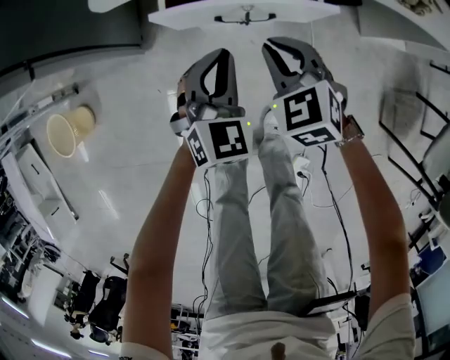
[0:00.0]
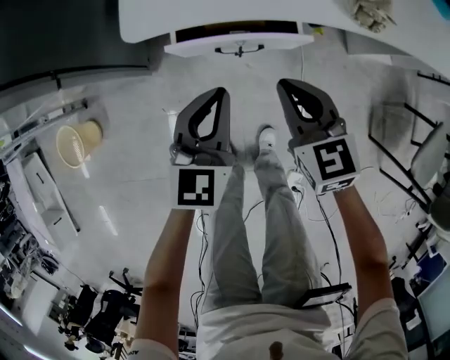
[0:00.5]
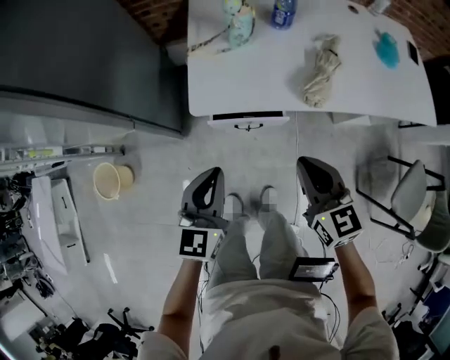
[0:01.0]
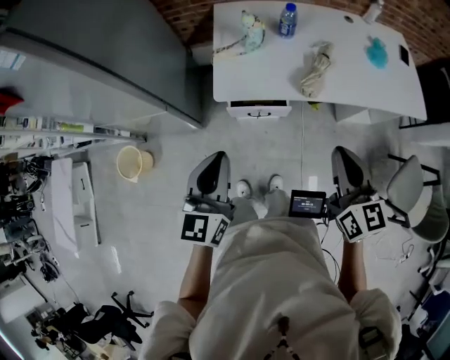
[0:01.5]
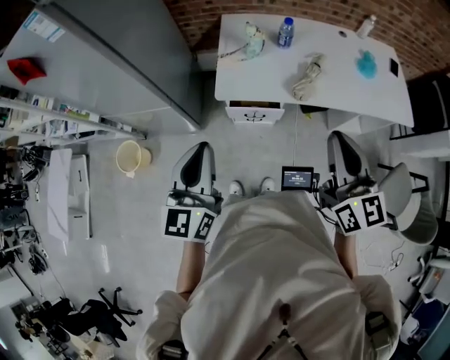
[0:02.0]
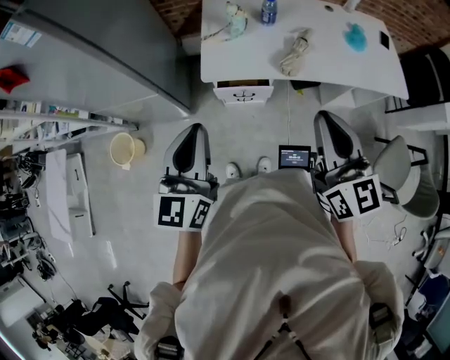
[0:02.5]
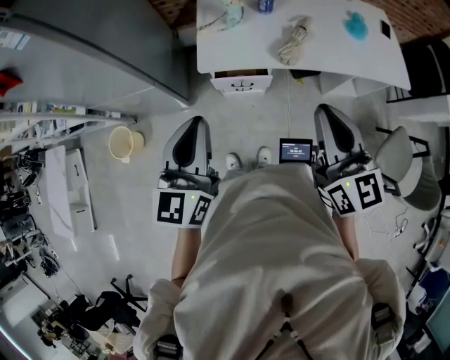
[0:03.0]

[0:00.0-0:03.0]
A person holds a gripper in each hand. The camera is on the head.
0:00.0 to 0:01.5: The two grippers go some 50 cm upward. The right gripper tips its fingers upward by about 30 degrees; the left gripper rotates some 40 degrees.
0:01.5 to 0:03.0: Both grippers travel together upward and backward, some 10 cm.

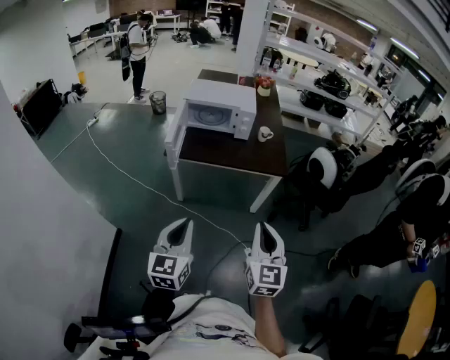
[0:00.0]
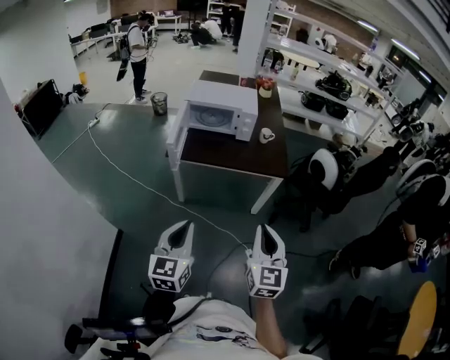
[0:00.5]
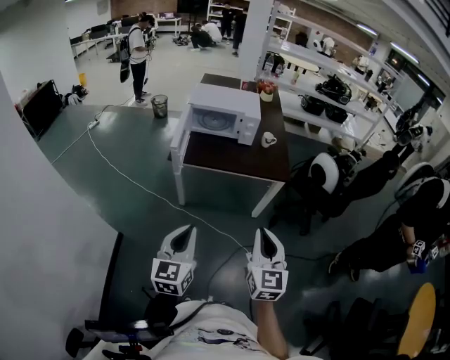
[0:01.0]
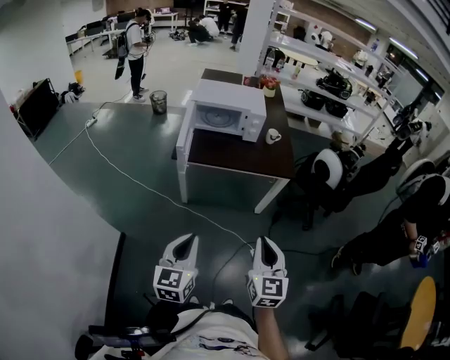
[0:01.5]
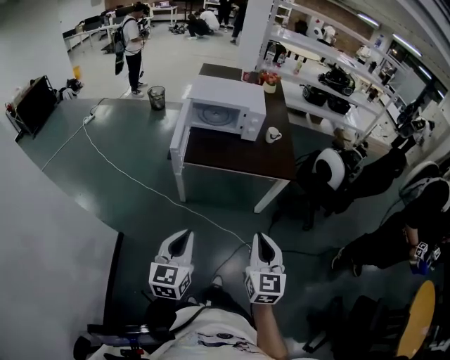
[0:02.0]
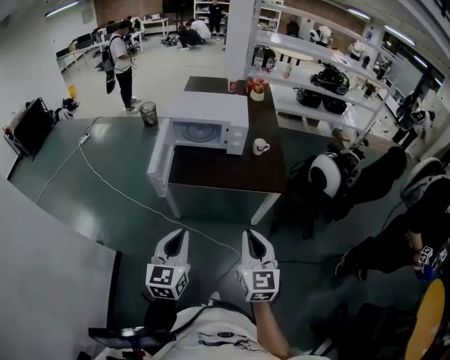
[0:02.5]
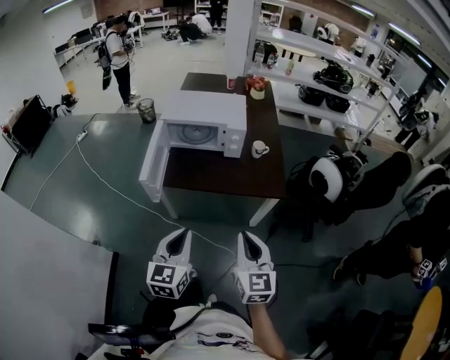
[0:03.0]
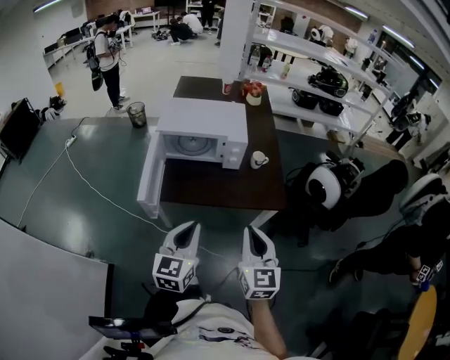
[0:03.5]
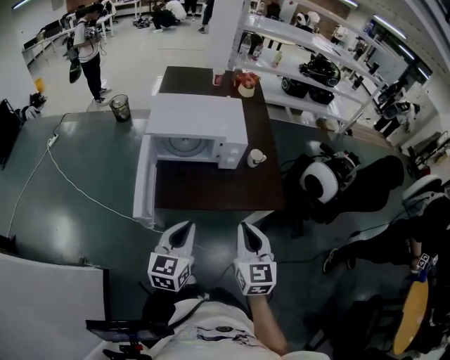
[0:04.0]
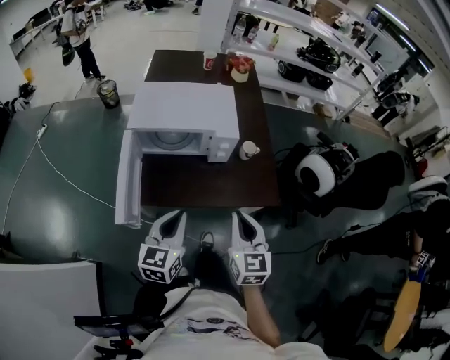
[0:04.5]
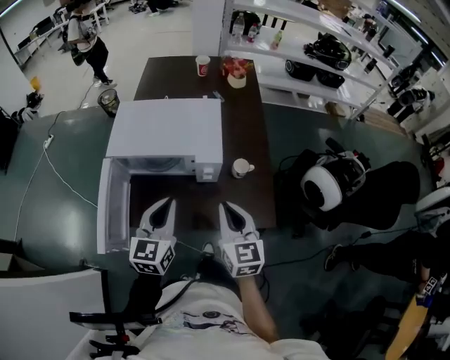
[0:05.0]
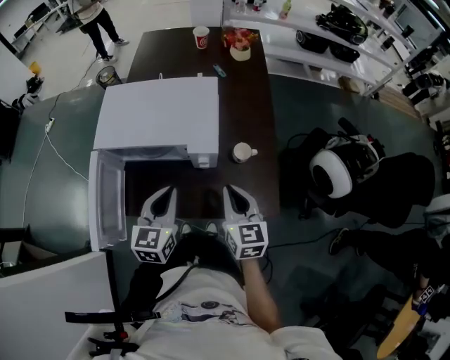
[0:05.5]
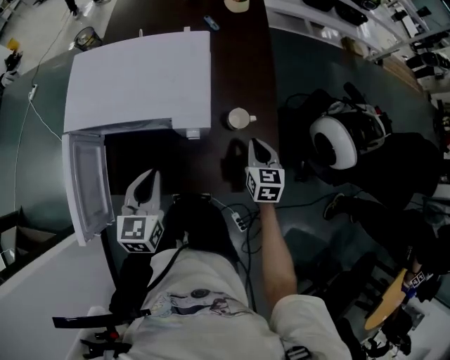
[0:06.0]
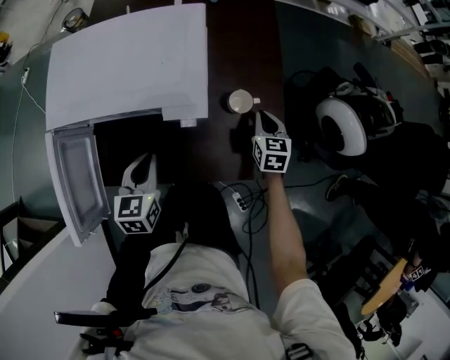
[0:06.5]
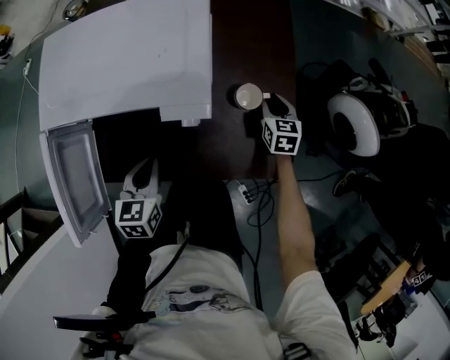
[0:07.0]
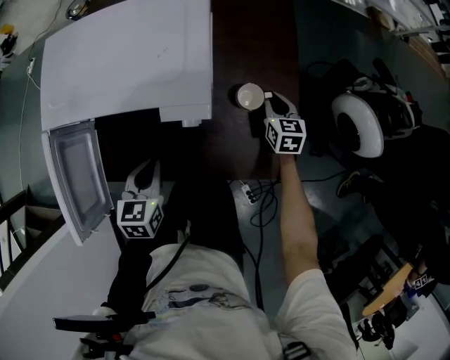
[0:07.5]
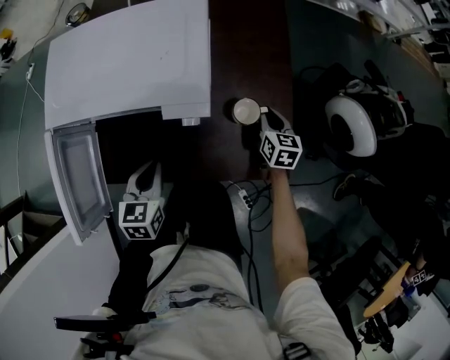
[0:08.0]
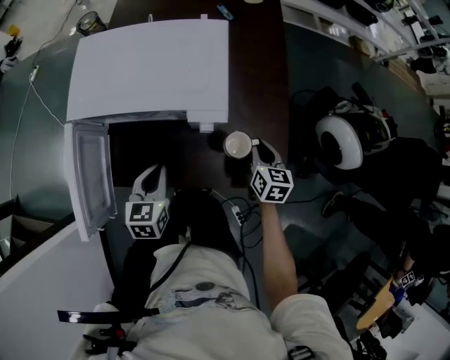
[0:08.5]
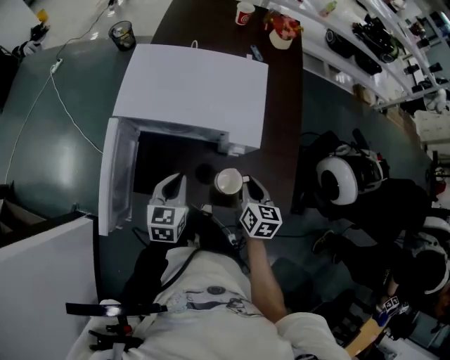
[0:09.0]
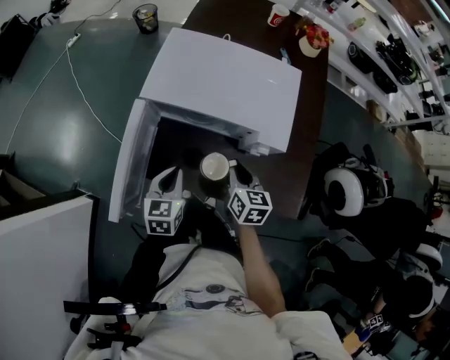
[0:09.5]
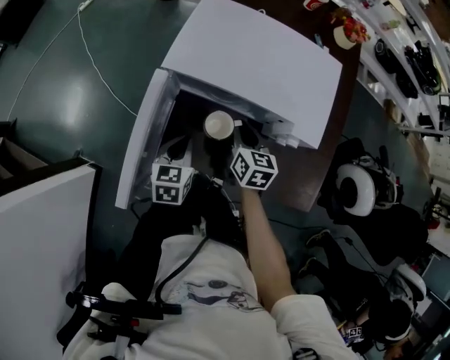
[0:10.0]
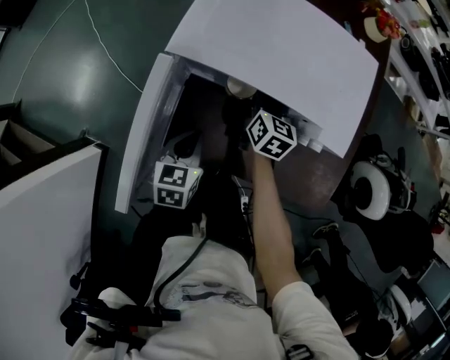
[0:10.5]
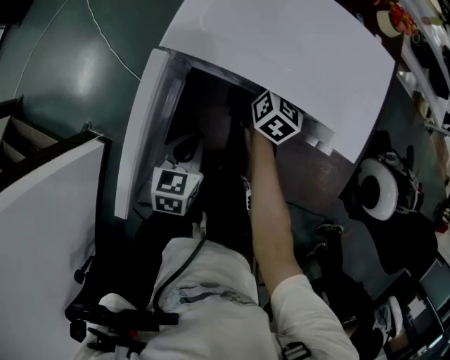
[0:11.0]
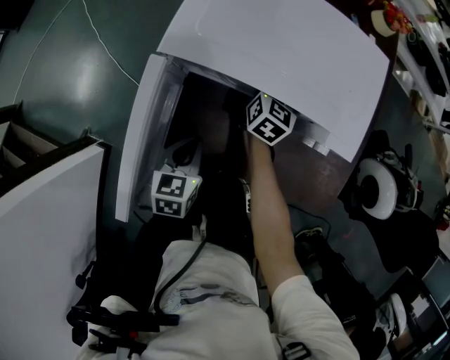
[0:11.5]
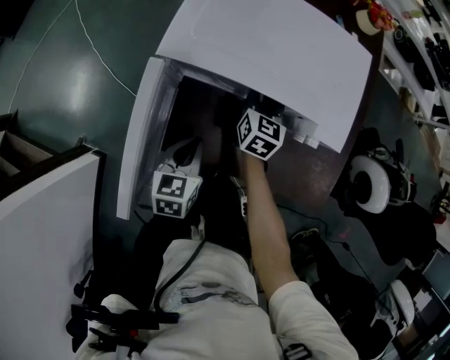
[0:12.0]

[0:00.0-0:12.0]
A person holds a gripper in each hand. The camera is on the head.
0:00.0 to 0:02.0: The left gripper changes place by approximately 5 cm; the right gripper shifts by roughly 5 cm.
0:02.0 to 0:04.0: The grippers both shift forward by some 25 cm.
0:04.0 to 0:06.0: The right gripper shifts some 40 cm forward, downward and to the right, and turns by about 20 degrees; the left gripper travels forward by some 20 cm.
0:06.0 to 0:08.0: Both grippers travel together downward, some 10 cm.
0:08.0 to 0:10.0: The right gripper shifts roughly 35 cm to the left, while the left gripper goes roughly 15 cm to the left.
0:10.0 to 0:12.0: The right gripper goes roughly 10 cm forward.

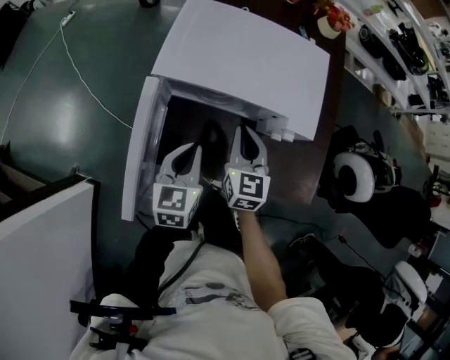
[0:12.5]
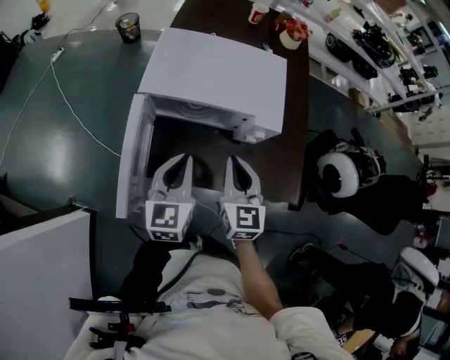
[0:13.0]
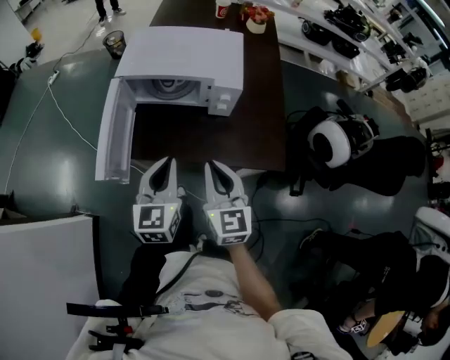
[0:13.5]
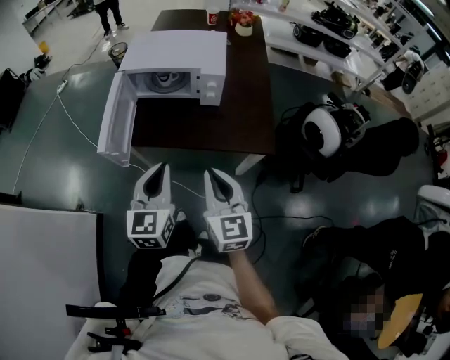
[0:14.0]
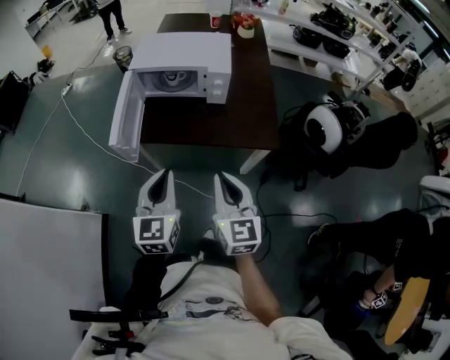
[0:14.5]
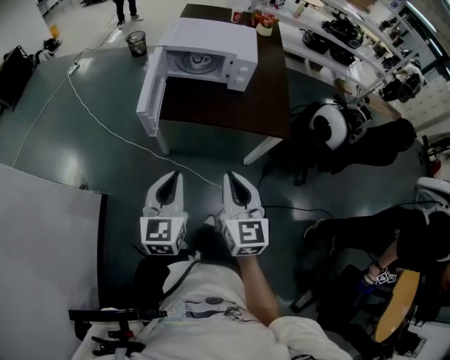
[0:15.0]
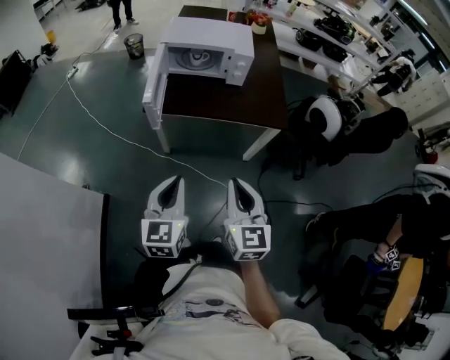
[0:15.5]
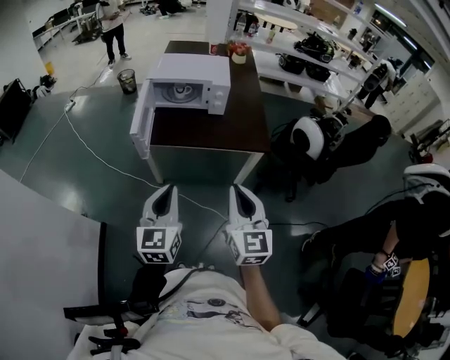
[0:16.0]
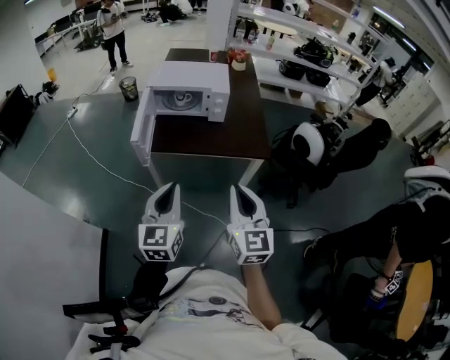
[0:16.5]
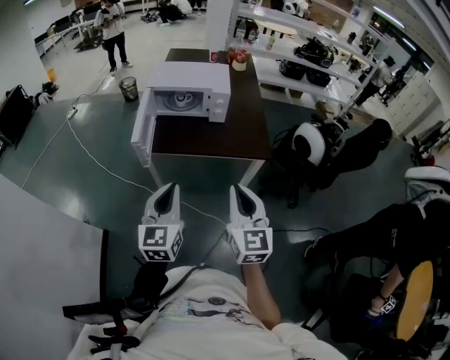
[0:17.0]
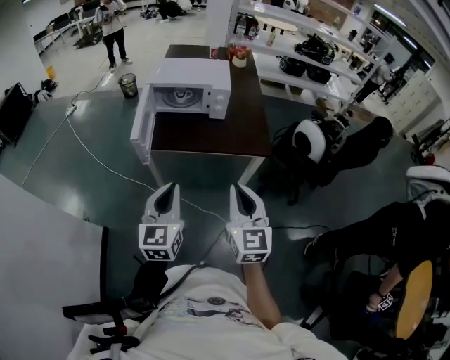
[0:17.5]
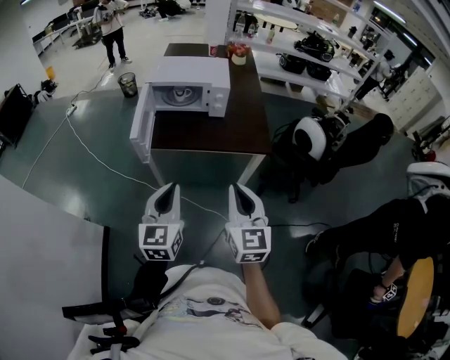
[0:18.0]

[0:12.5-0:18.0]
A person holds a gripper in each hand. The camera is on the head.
0:12.5 to 0:14.5: The left gripper moves backward and upward, some 30 cm, while the right gripper heads backward, covering some 35 cm.
0:14.5 to 0:16.0: The left gripper goes some 15 cm backward. Meanwhile the right gripper heads backward and upward, covering some 15 cm.
0:16.0 to 0:18.0: There are only small adjustments of the grippers.

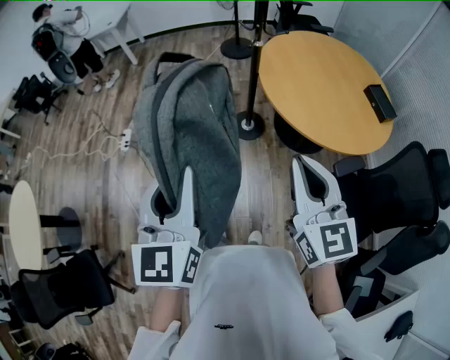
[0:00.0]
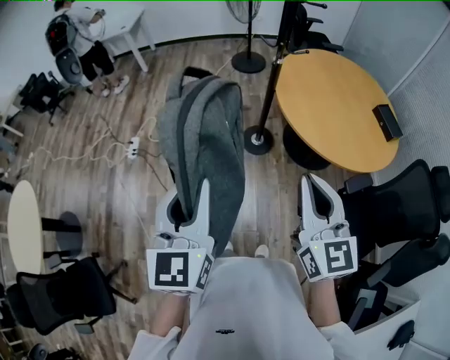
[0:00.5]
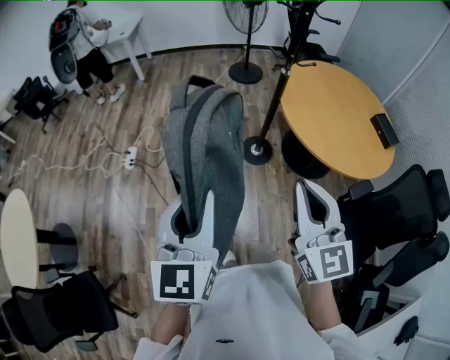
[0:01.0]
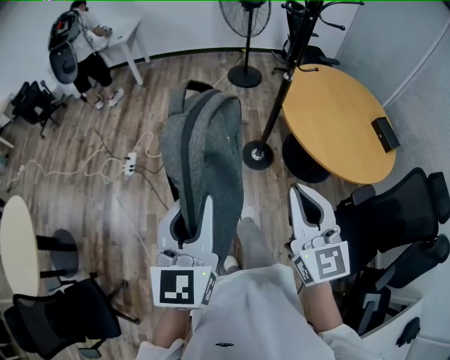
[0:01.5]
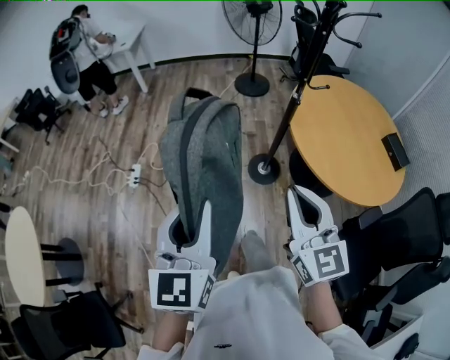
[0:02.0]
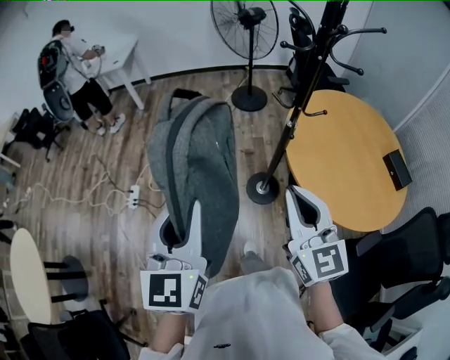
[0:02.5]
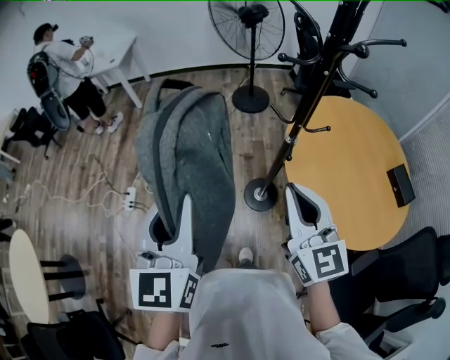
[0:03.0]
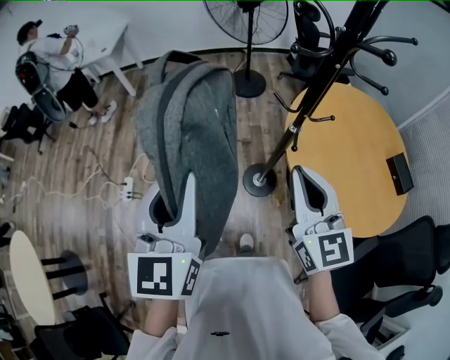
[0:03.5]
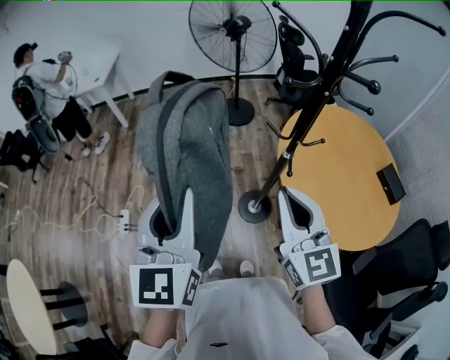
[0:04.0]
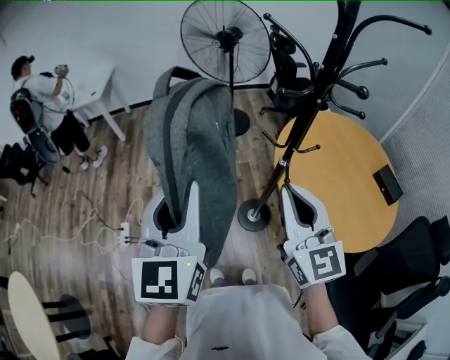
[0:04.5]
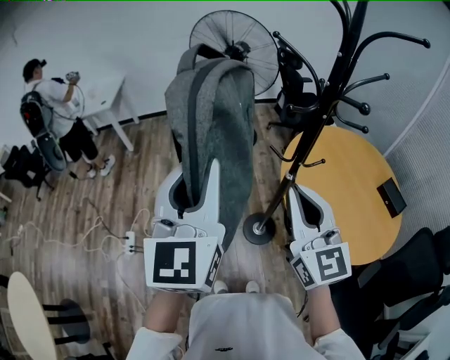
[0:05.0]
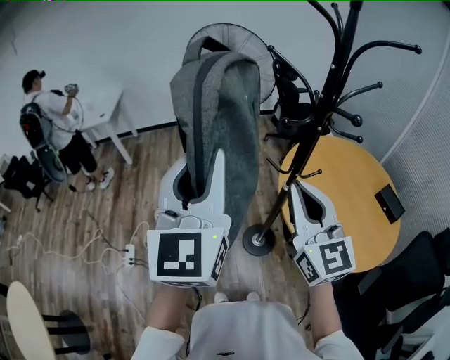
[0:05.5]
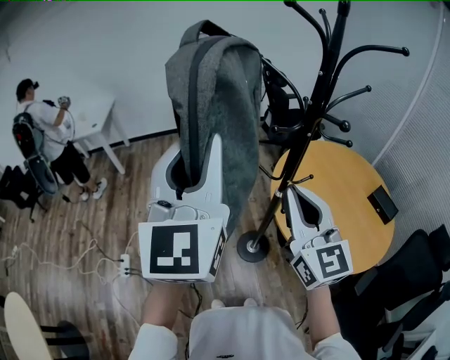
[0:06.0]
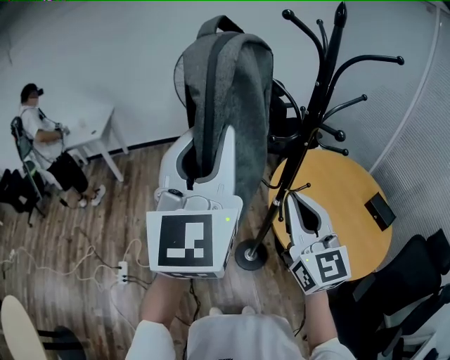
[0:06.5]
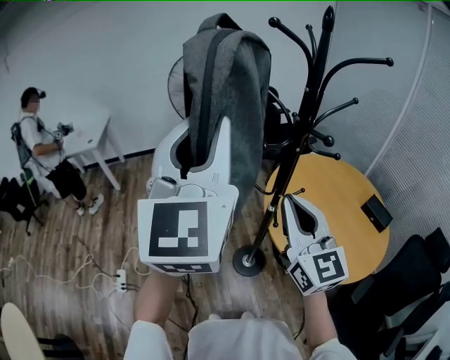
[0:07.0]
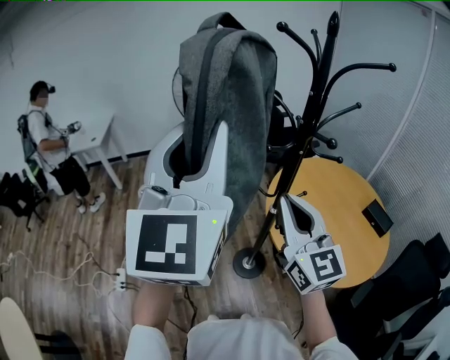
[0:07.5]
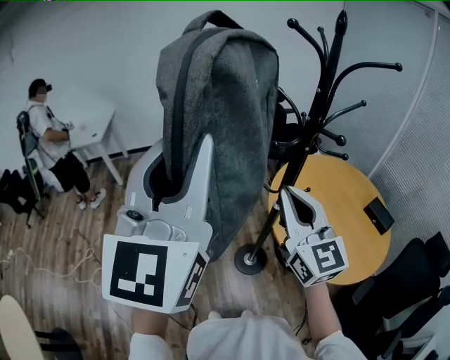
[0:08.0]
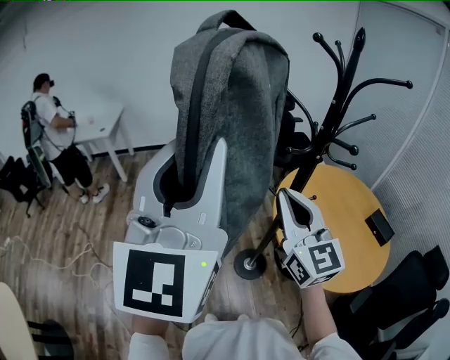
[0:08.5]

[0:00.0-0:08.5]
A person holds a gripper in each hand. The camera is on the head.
0:00.0 to 0:02.0: Both grippers move to the left and forward, approximately 20 cm.
0:02.0 to 0:04.0: Both grippers travel together forward, roughly 25 cm.
0:04.0 to 0:06.5: The right gripper moves upward, about 10 cm. The left gripper heads upward, covering approximately 20 cm, and swivels some 30 degrees.
0:06.5 to 0:08.5: The left gripper heads backward and to the left, covering some 10 cm, while the right gripper shifts by approximately 5 cm.
